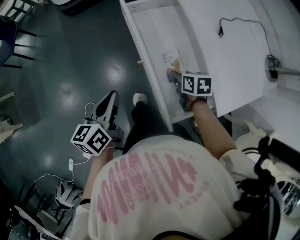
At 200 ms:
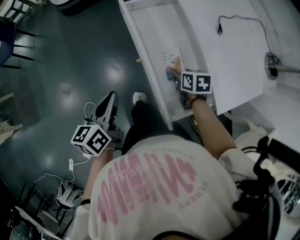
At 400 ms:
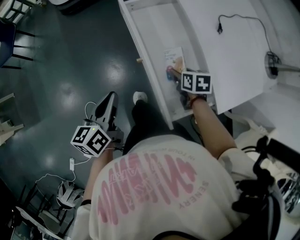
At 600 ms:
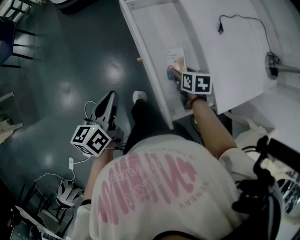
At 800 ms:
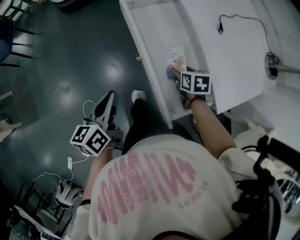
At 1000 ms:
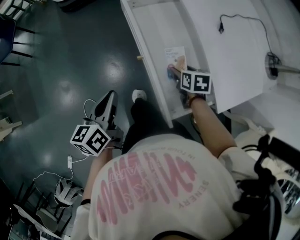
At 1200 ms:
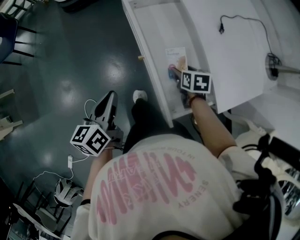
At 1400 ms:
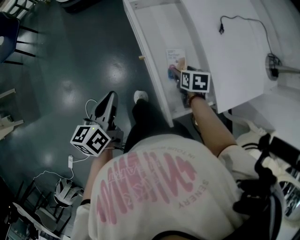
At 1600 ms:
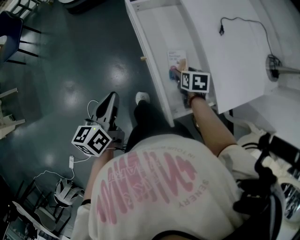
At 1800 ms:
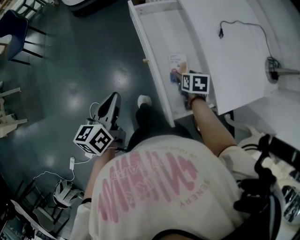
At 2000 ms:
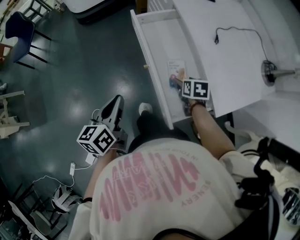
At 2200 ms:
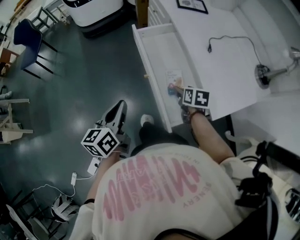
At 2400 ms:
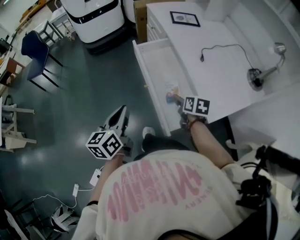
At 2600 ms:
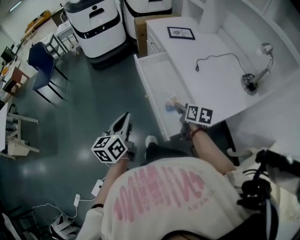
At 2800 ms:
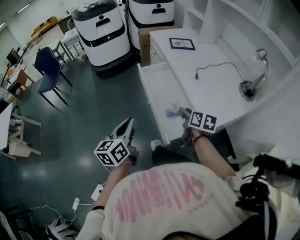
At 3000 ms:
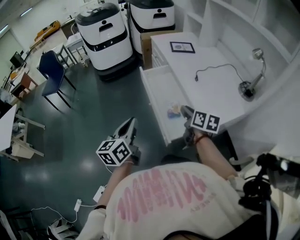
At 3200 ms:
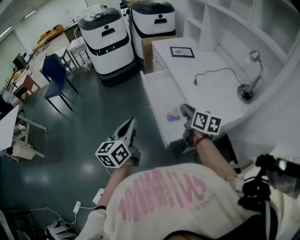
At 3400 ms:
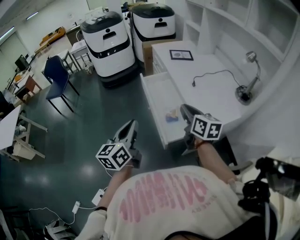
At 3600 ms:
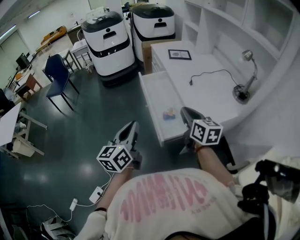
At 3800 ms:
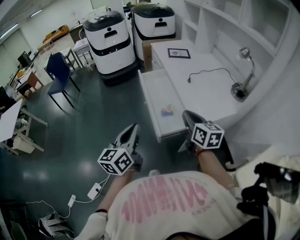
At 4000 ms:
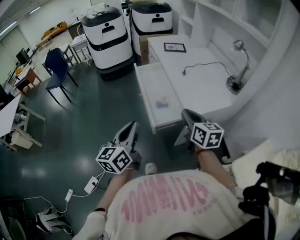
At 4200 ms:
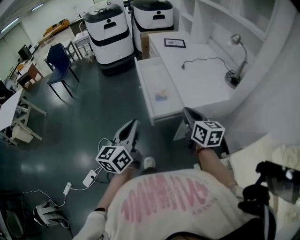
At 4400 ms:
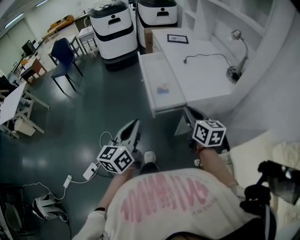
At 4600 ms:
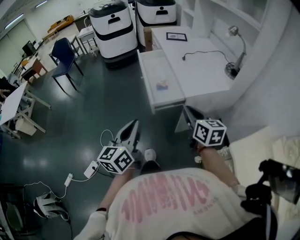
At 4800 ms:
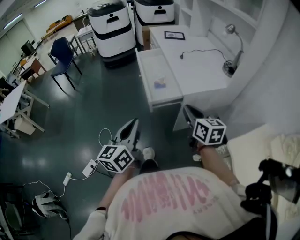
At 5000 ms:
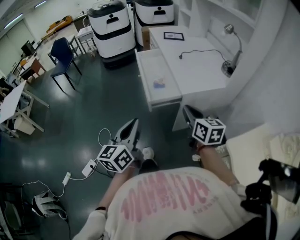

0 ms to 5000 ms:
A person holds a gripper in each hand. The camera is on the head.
0 ms to 1600 ms: The right gripper opens up.
1600 ms to 3400 ms: The right gripper heads upward, covering some 35 cm, tips its fingers upward by approximately 50 degrees, and closes up. Meanwhile the left gripper is displaced upward and backward by roughly 25 cm, and rotates some 30 degrees.
3400 ms to 5000 ms: The left gripper travels backward and to the right by approximately 30 cm, while the right gripper moves backward, some 25 cm.

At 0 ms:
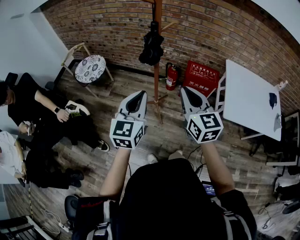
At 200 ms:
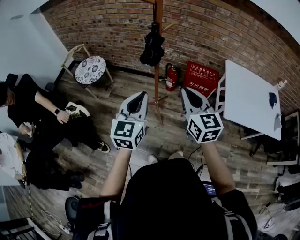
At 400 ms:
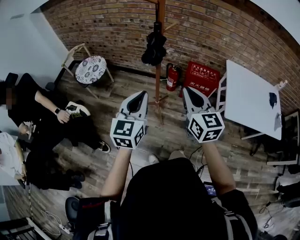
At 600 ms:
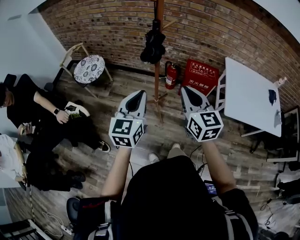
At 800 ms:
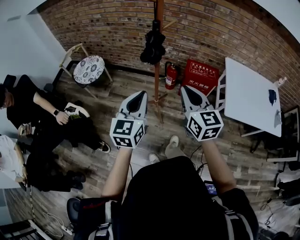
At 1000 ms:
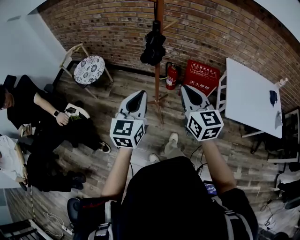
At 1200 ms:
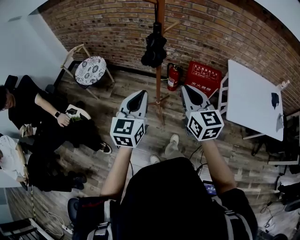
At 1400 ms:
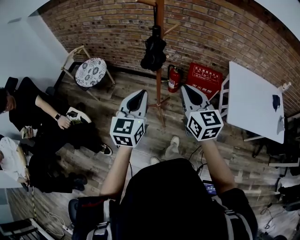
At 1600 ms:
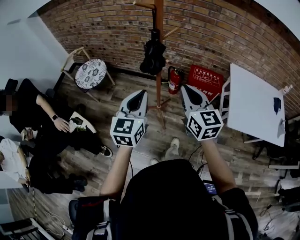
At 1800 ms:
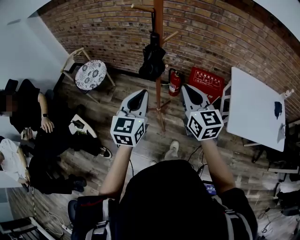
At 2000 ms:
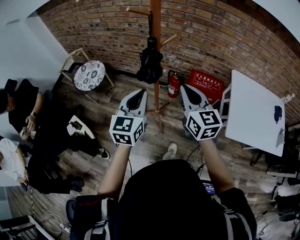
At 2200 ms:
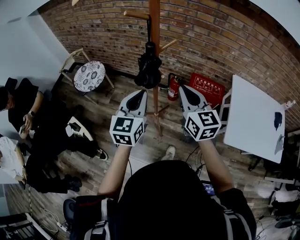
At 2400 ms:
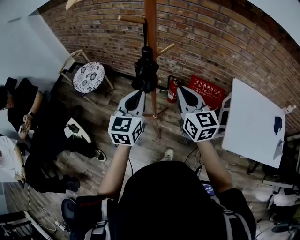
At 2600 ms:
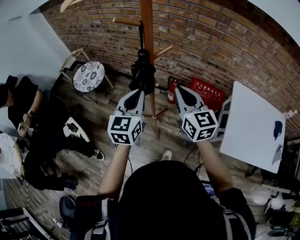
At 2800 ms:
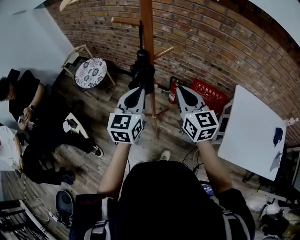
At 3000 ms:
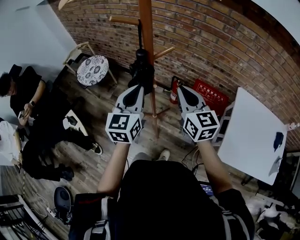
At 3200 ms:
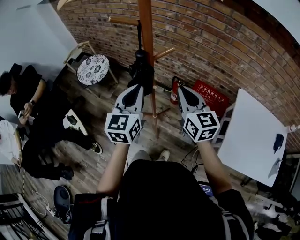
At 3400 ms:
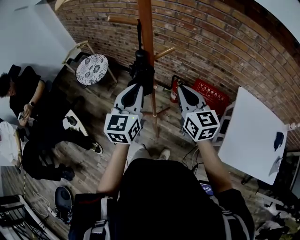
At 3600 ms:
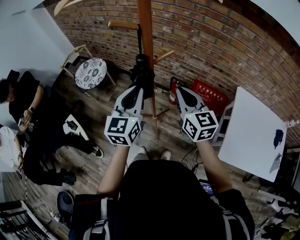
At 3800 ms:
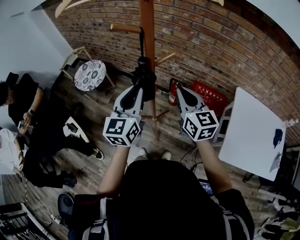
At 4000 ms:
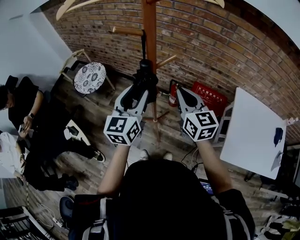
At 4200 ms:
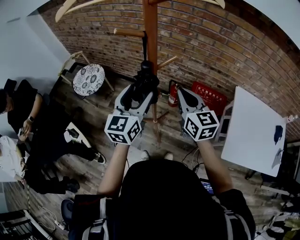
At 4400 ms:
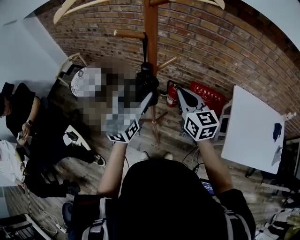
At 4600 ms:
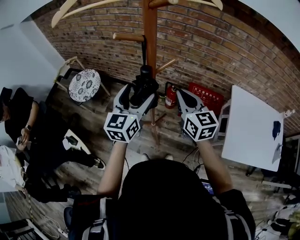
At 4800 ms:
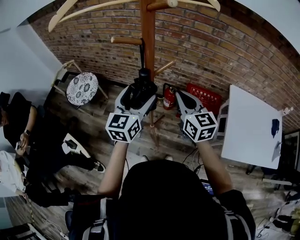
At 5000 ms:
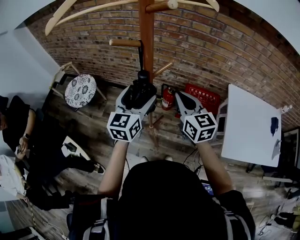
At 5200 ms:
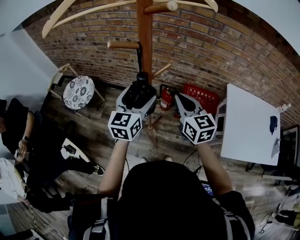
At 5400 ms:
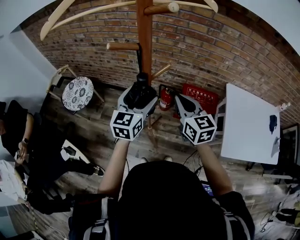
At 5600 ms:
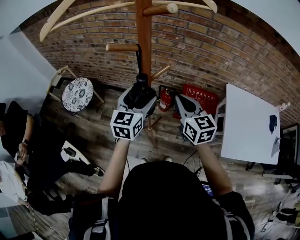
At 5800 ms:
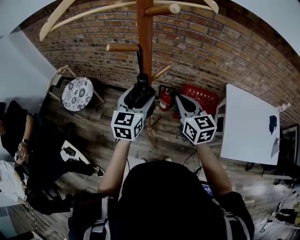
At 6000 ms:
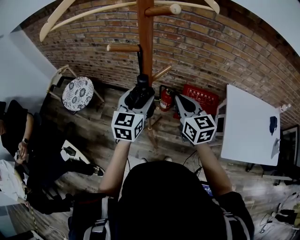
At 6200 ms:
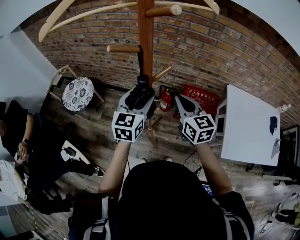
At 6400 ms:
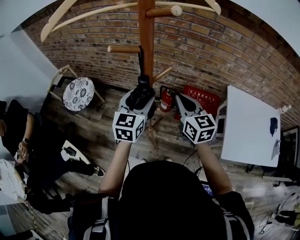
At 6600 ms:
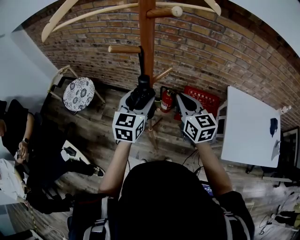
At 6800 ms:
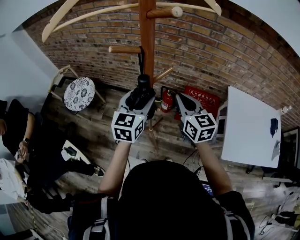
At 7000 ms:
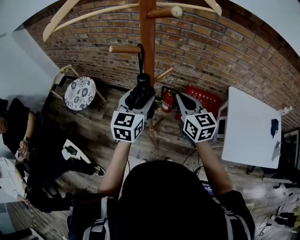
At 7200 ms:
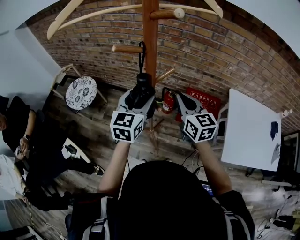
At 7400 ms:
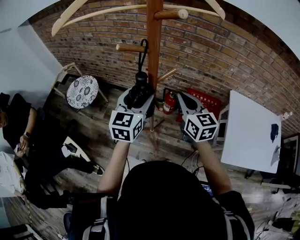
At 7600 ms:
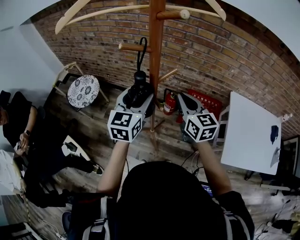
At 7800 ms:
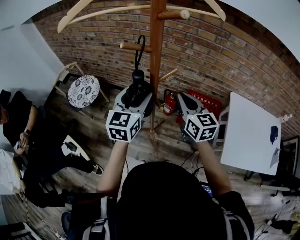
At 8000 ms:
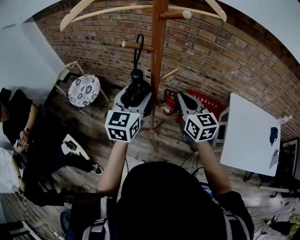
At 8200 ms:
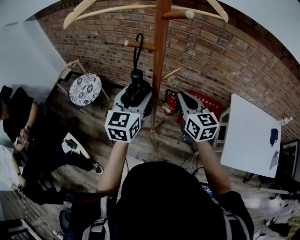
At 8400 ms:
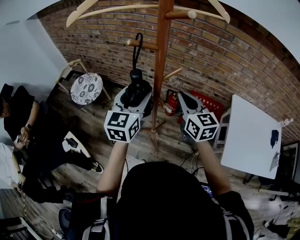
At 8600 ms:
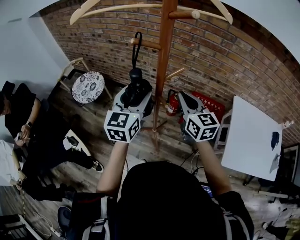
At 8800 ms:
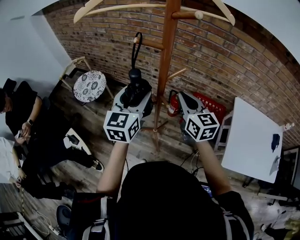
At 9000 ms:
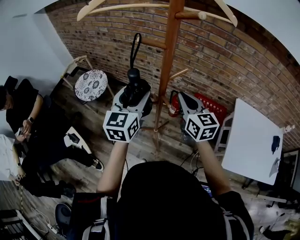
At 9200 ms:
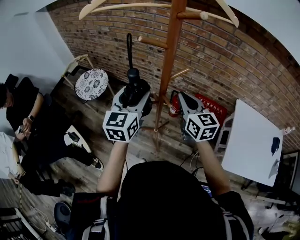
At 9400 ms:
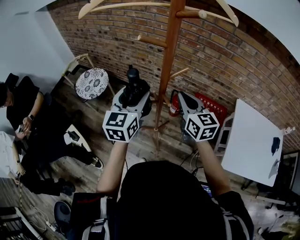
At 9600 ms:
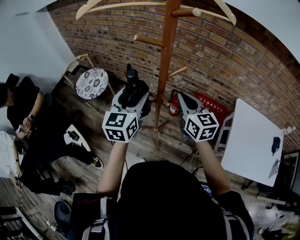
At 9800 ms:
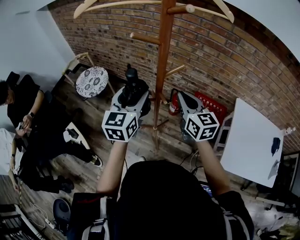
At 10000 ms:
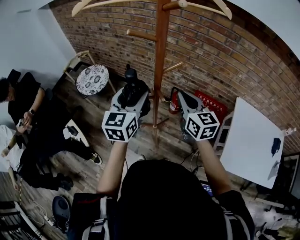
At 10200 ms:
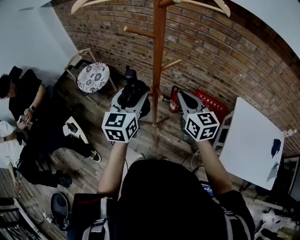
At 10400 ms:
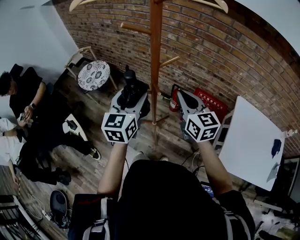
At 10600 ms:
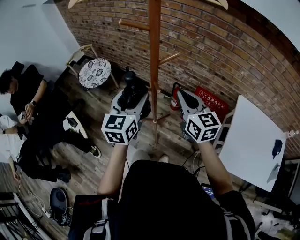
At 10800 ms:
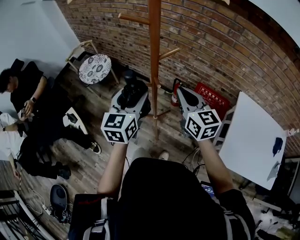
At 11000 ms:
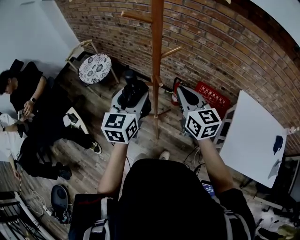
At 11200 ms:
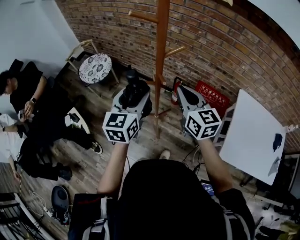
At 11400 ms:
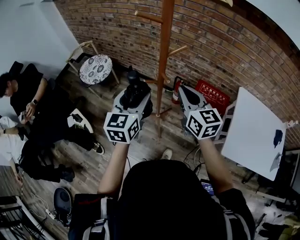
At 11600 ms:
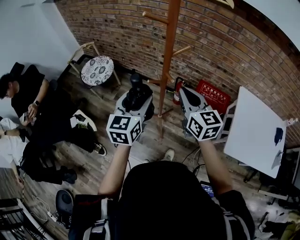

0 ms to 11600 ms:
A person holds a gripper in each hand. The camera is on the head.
0 ms to 1400 ms: The two grippers go approximately 5 cm forward.
1400 ms to 2800 ms: The two grippers go roughly 15 cm forward.
2800 ms to 4400 ms: The left gripper heads forward, covering about 5 cm, and opens.
4400 ms to 5800 ms: The left gripper heads forward, covering some 5 cm.
5800 ms to 7200 ms: The grippers move only a little.
7200 ms to 8800 ms: The left gripper goes roughly 5 cm to the left.
8800 ms to 10200 ms: There are only small adjustments of the grippers.
10200 ms to 11600 ms: The right gripper shifts approximately 10 cm backward and to the left. The left gripper shifts roughly 10 cm backward.

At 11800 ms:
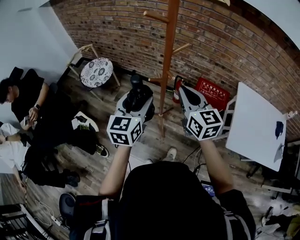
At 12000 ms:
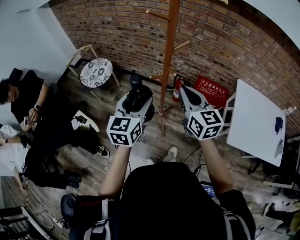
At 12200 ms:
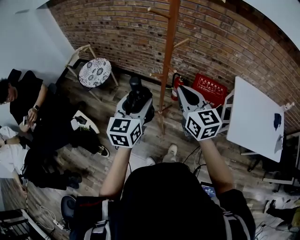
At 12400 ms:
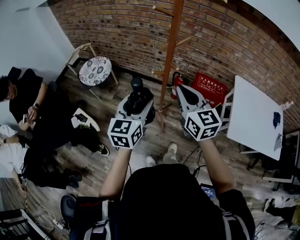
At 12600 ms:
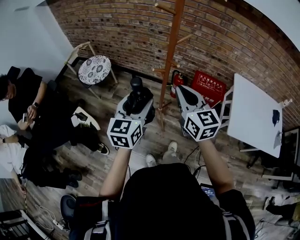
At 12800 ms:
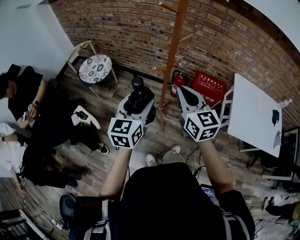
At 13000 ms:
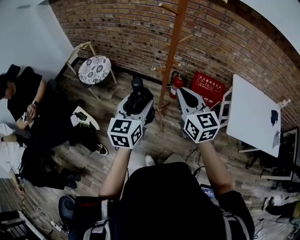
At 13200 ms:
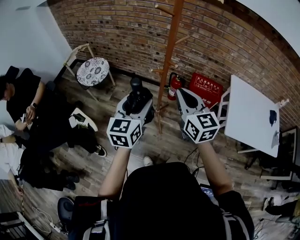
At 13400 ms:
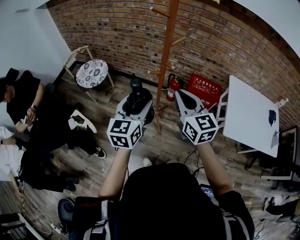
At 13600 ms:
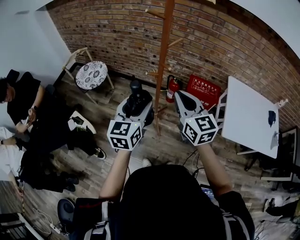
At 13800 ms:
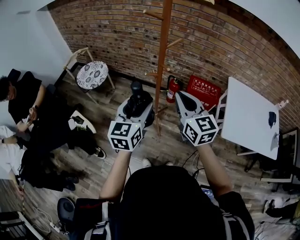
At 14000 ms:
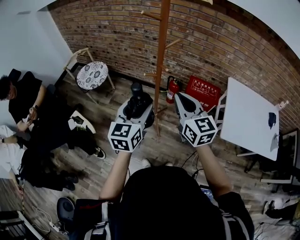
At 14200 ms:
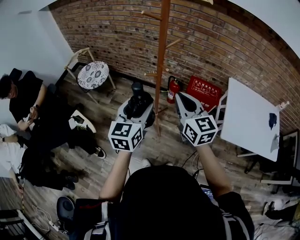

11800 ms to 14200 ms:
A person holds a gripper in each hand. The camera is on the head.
11800 ms to 13000 ms: The right gripper is displaced backward and to the left by roughly 10 cm. The left gripper moves backward, approximately 10 cm.
13000 ms to 14200 ms: Both grippers travel together to the right, approximately 5 cm.

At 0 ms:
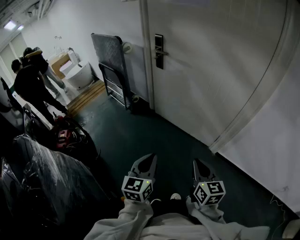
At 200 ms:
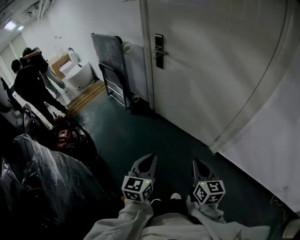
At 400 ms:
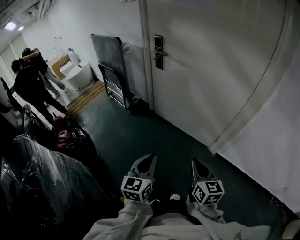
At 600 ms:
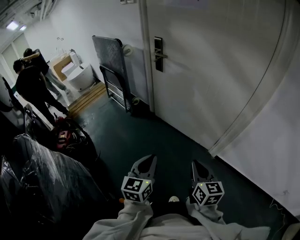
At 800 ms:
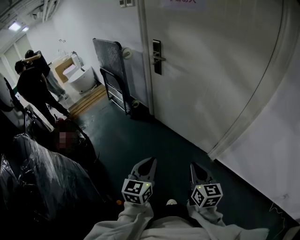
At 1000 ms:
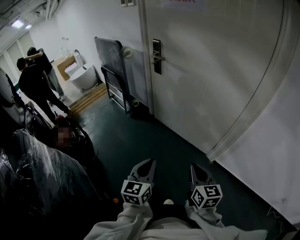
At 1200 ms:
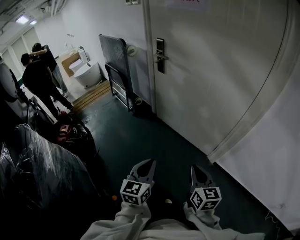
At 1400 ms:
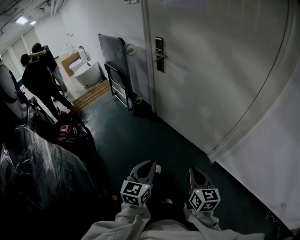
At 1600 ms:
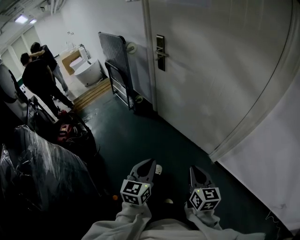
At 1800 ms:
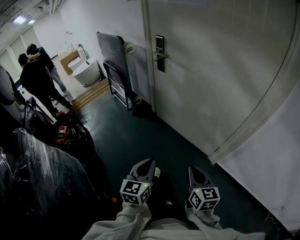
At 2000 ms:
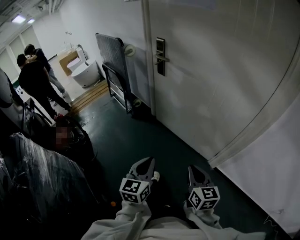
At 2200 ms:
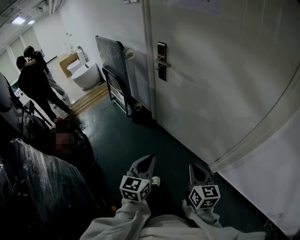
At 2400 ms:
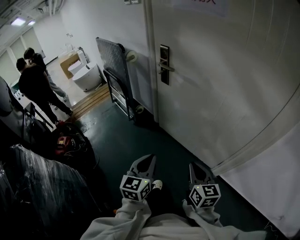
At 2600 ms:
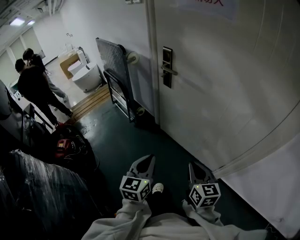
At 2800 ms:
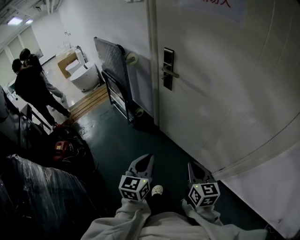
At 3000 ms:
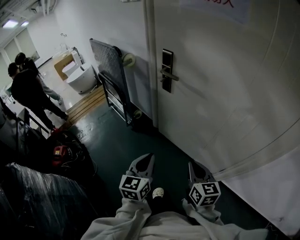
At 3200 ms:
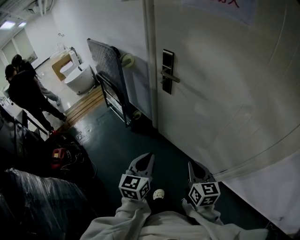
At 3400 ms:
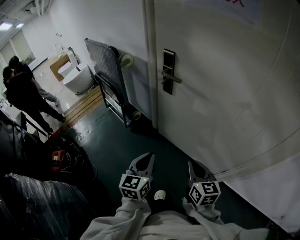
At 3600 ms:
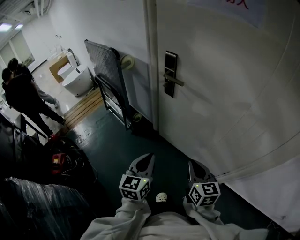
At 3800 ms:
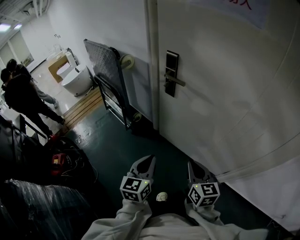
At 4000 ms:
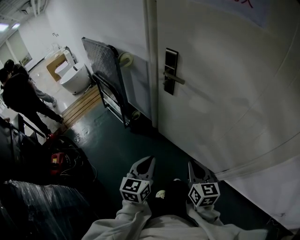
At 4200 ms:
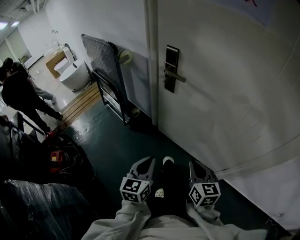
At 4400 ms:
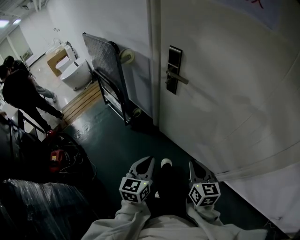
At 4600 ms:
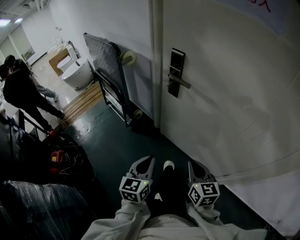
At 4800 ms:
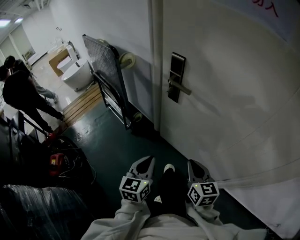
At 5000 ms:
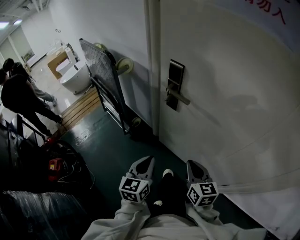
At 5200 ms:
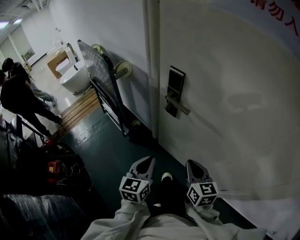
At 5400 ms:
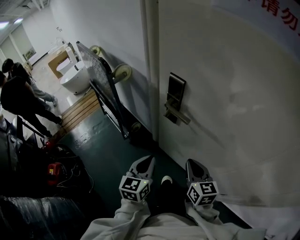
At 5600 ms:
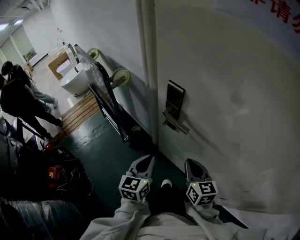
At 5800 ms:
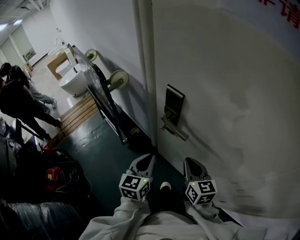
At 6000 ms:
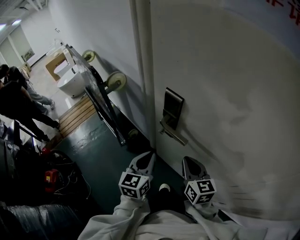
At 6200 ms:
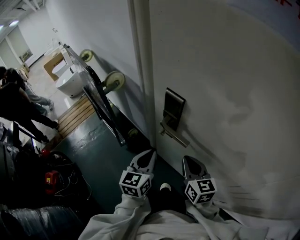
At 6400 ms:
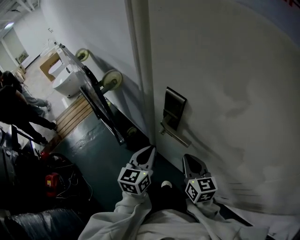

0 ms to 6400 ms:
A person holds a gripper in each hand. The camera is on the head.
0 ms to 1600 ms: The grippers both shift to the right by some 5 cm.
1600 ms to 3200 ms: Both grippers travel together forward, roughly 30 cm.
3200 ms to 4800 ms: Both grippers travel together forward, approximately 10 cm.
4800 ms to 6400 ms: The grippers both shift forward by some 25 cm.
